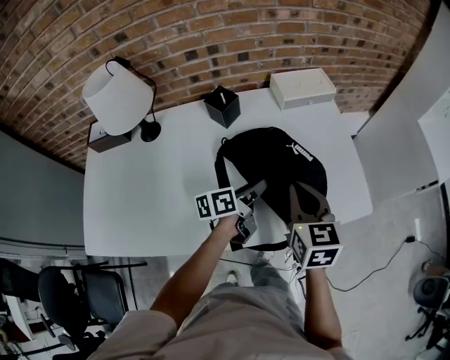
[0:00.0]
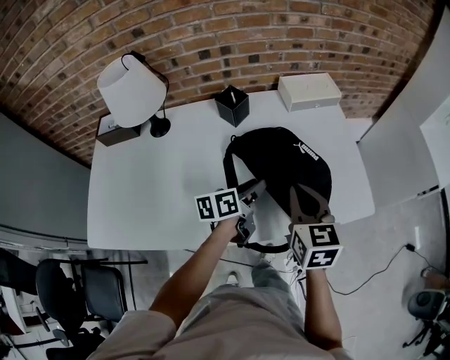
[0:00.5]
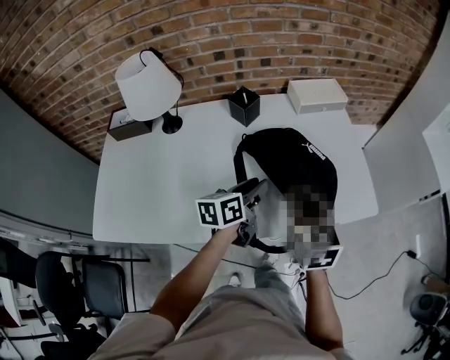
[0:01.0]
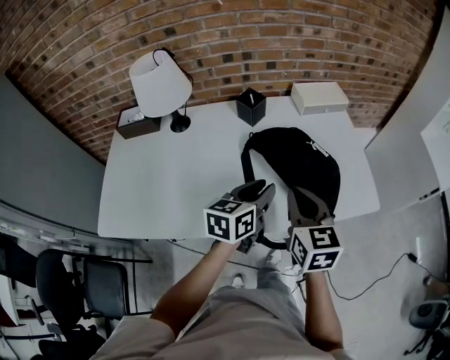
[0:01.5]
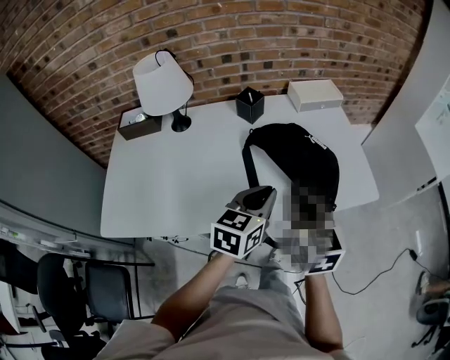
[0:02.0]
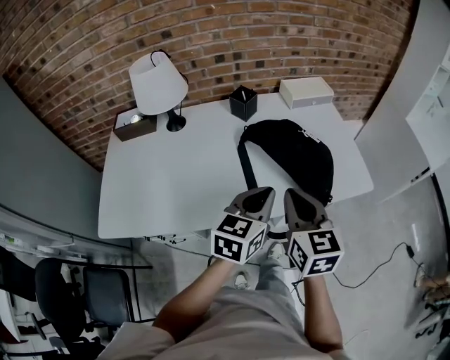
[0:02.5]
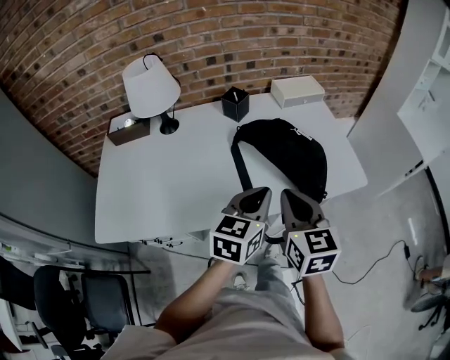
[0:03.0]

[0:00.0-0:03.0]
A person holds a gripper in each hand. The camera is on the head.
0.0 to 1.5 s: The right gripper travels backward and to the left by about 10 cm; the left gripper moves backward and upward, roughly 15 cm, and changes its angle by some 40 degrees.
1.5 to 3.0 s: Both grippers travel together backward, some 10 cm. The left gripper closes up.

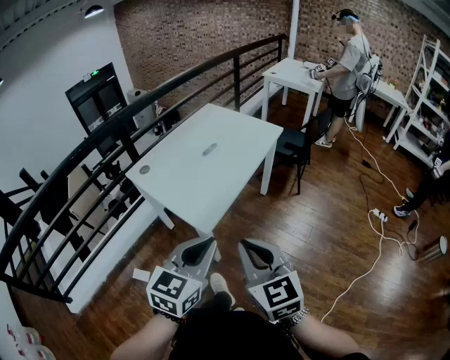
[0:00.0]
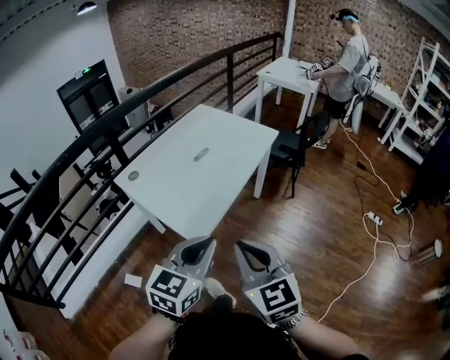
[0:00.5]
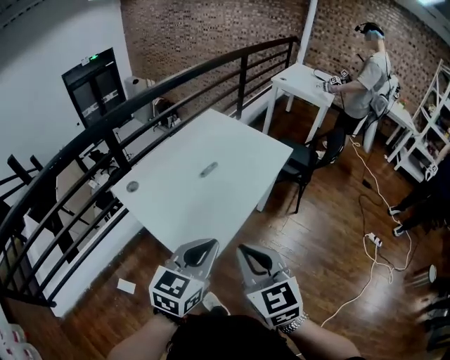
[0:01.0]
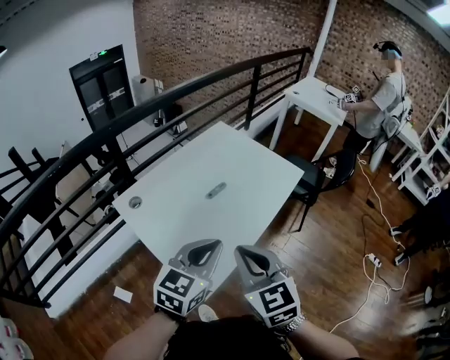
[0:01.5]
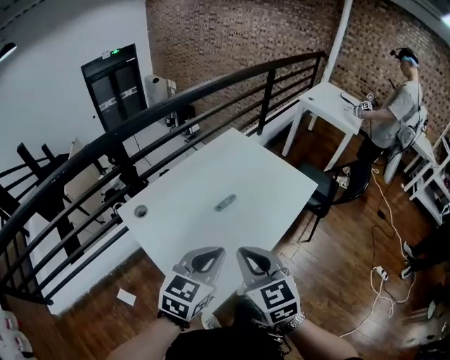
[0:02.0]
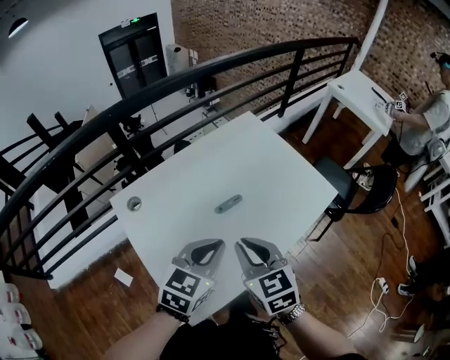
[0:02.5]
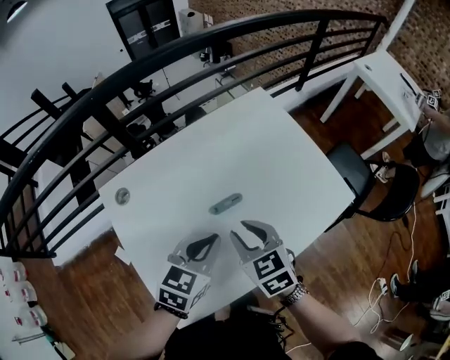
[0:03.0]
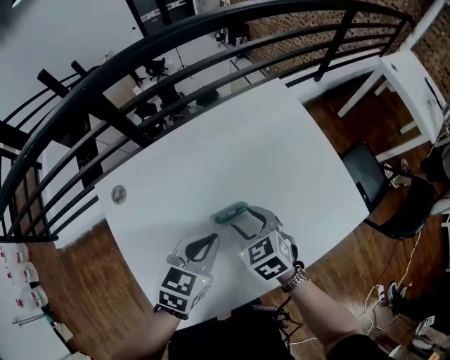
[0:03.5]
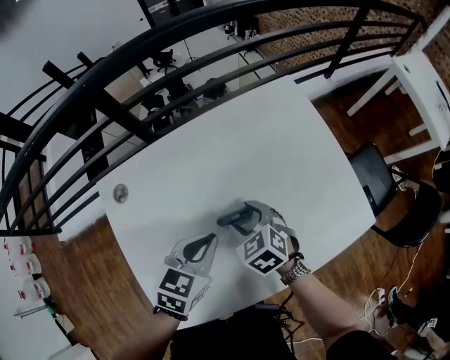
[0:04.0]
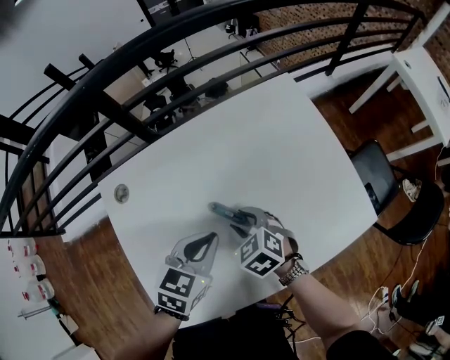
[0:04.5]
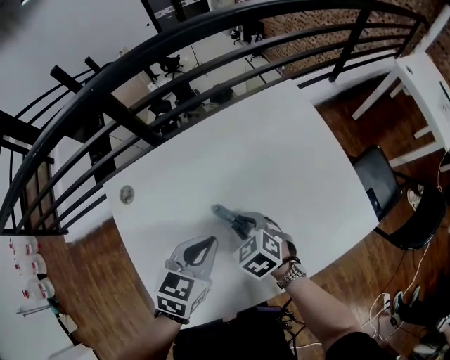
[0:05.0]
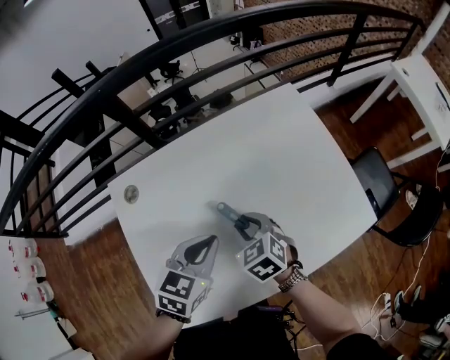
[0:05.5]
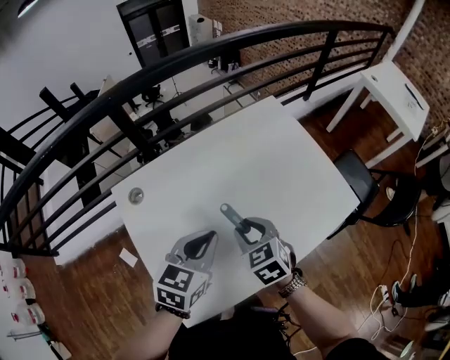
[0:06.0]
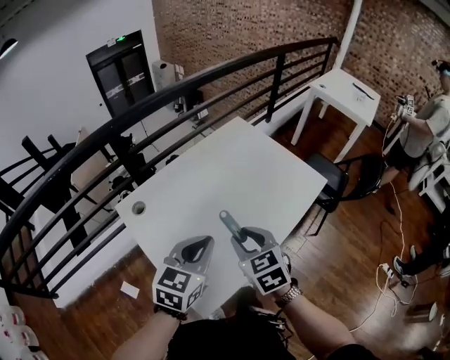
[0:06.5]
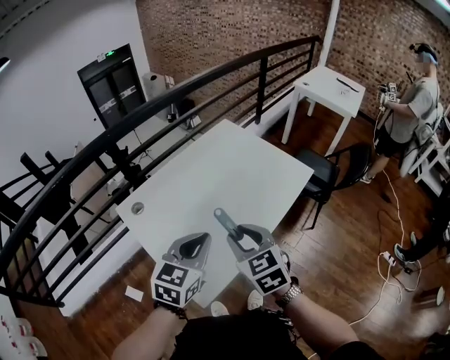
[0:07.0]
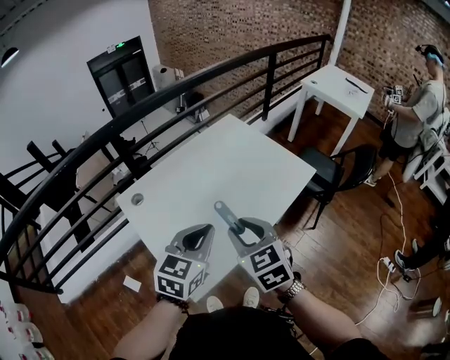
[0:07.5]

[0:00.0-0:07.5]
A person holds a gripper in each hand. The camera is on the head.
0.0 to 2.0 s: The grippers both shift forward by about 30 cm.
2.0 to 4.0 s: The right gripper changes place by approximately 35 cm, rotates some 50 degrees, and opens up. Meanwhile the left gripper changes place by about 25 cm, and turns by some 30 degrees.
4.0 to 5.5 s: The right gripper closes up.
5.5 to 7.5 s: The grippers both shift backward and upward by about 25 cm. The left gripper changes its angle by approximately 30 degrees; the right gripper rotates approximately 30 degrees.

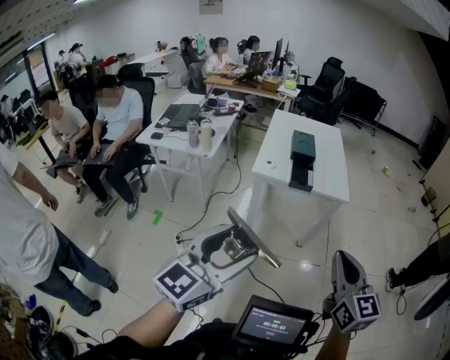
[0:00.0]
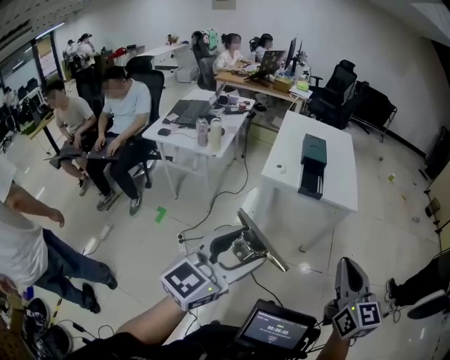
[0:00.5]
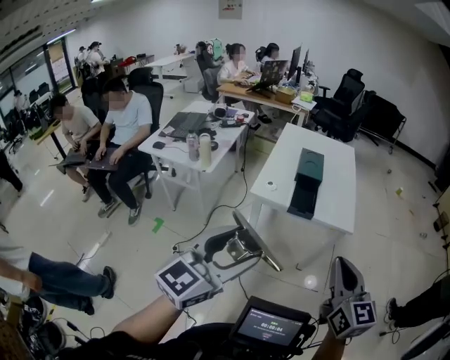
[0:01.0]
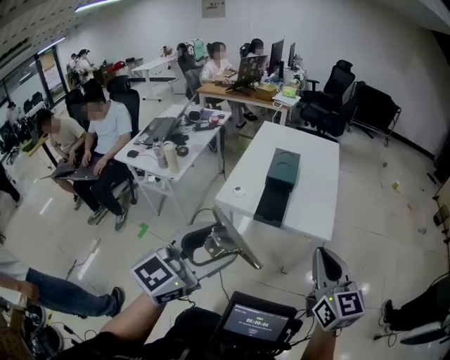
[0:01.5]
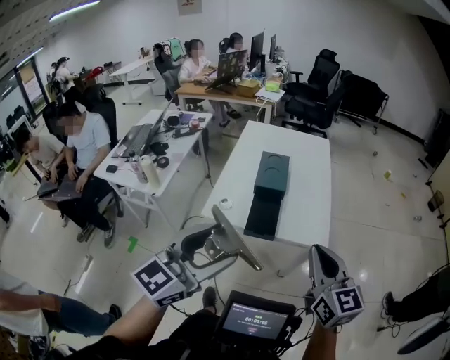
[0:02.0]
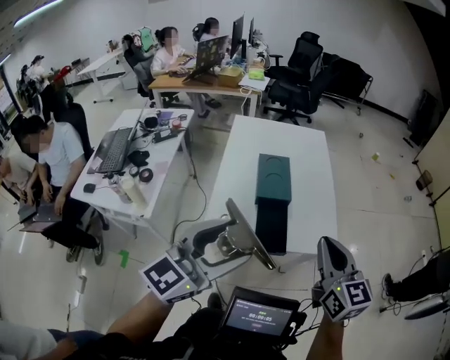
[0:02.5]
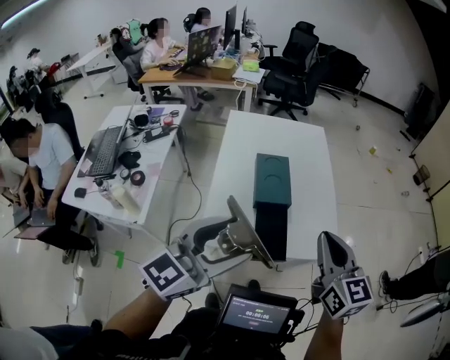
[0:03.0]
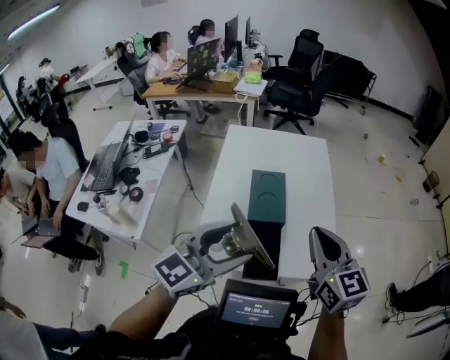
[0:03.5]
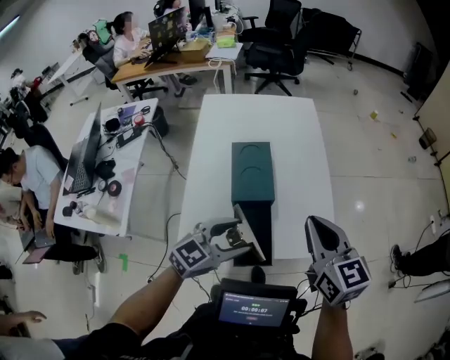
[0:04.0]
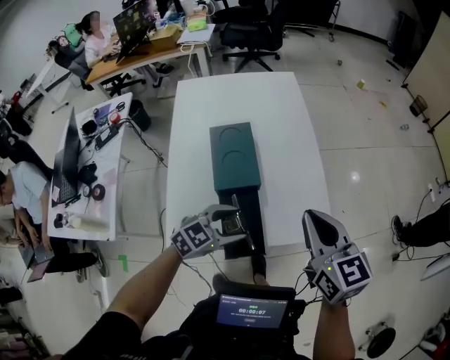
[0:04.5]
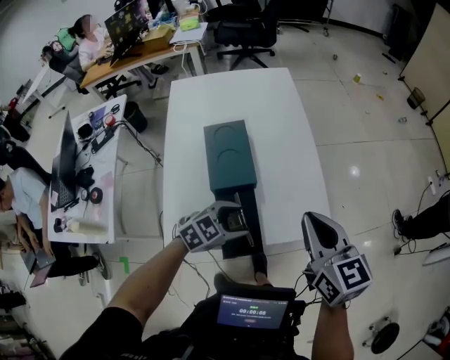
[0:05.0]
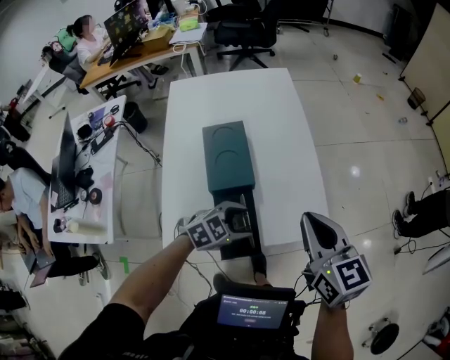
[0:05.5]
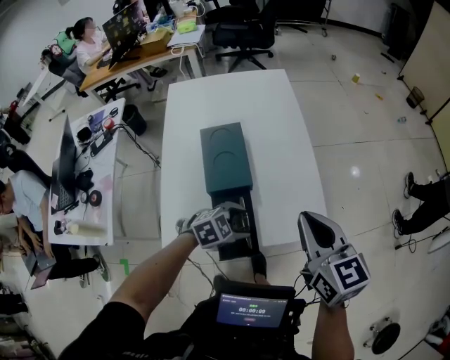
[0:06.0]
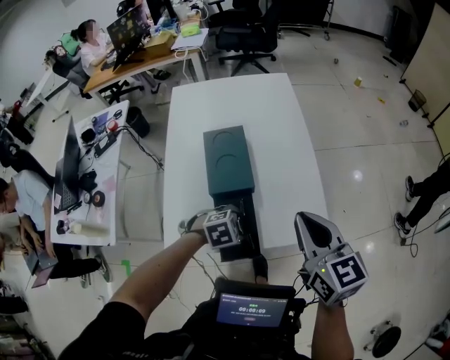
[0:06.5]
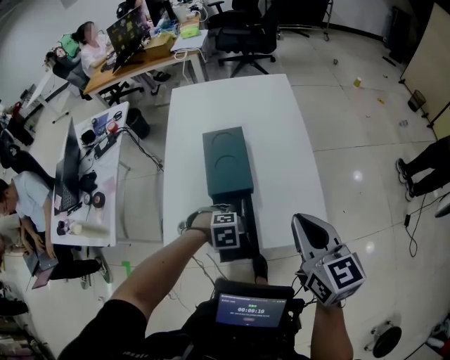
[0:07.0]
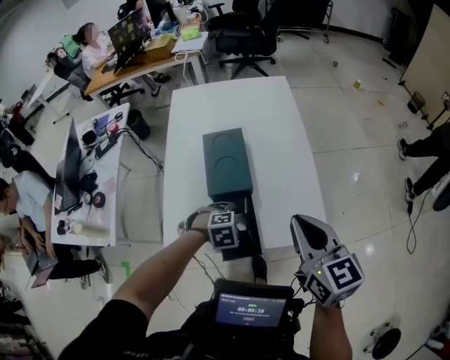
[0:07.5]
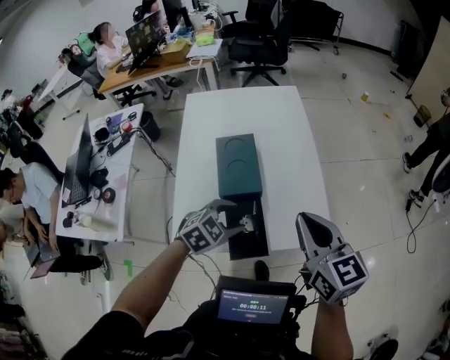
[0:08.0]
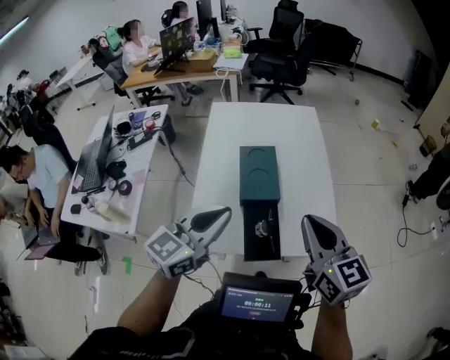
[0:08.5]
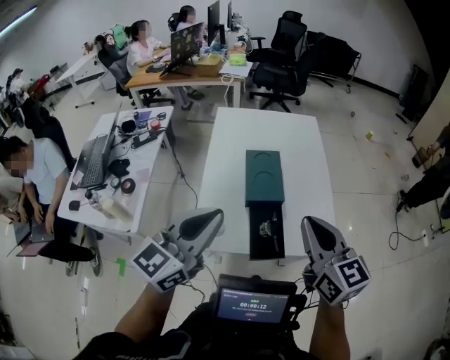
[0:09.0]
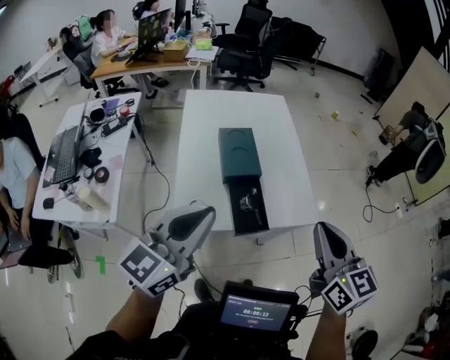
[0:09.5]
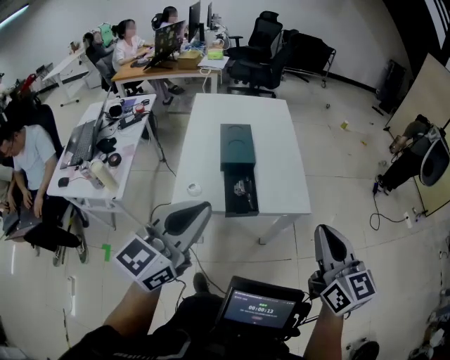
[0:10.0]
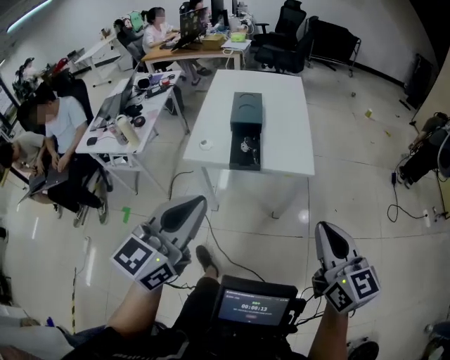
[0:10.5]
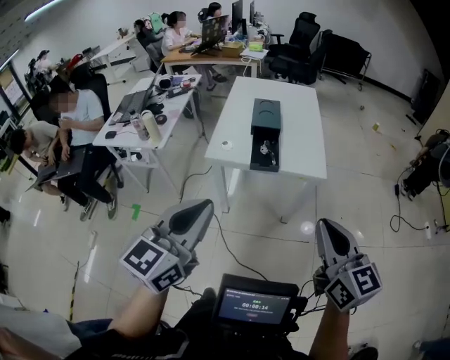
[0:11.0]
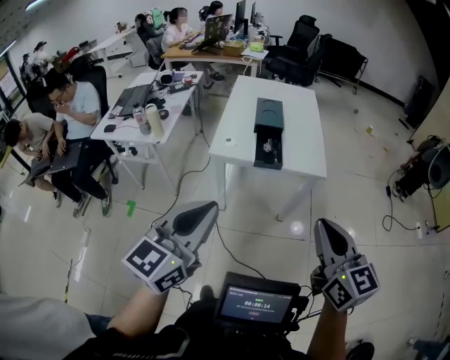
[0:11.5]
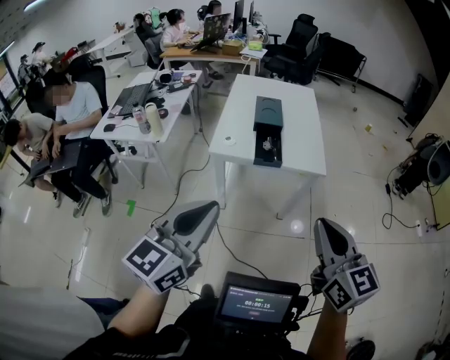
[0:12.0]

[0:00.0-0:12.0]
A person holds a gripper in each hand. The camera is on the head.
0.0 to 2.0 s: The two grippers travel together, forward, some 50 cm.
2.0 to 4.0 s: The right gripper moves forward, roughly 40 cm. Meanwhile the left gripper goes about 50 cm forward and downward, and turns by approximately 30 degrees.
4.0 to 6.0 s: The left gripper is displaced downward, to the right and forward by some 20 cm, and angles its fingers downward, by about 30 degrees. The right gripper travels to the right by about 5 cm.
6.0 to 8.0 s: The left gripper goes roughly 10 cm upward; the right gripper ends up roughly 5 cm from where it was.
8.0 to 10.0 s: The right gripper heads backward, covering about 35 cm. The left gripper travels backward and upward by roughly 50 cm, angles its fingers upward, by approximately 50 degrees, and closes its fingers.
10.0 to 12.0 s: The grippers both shift backward by some 35 cm.

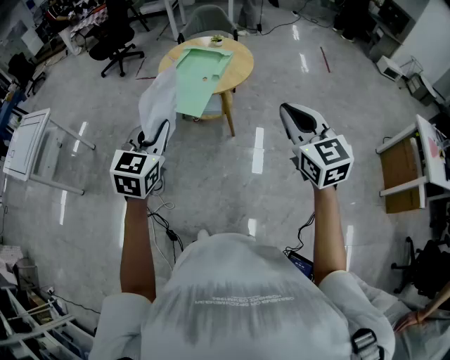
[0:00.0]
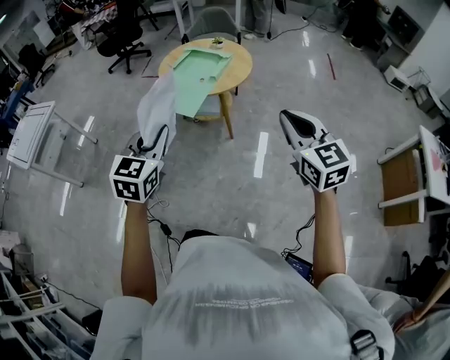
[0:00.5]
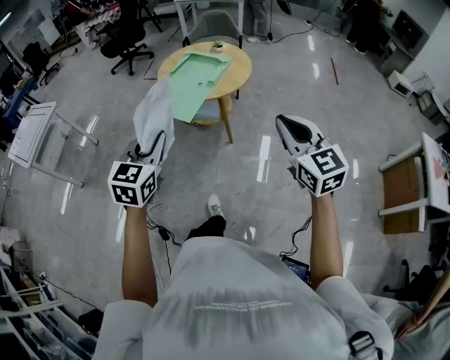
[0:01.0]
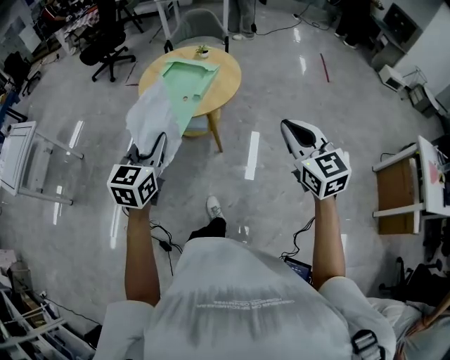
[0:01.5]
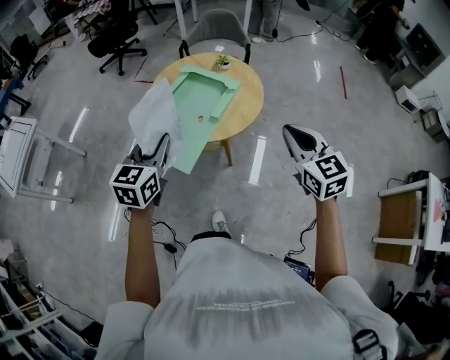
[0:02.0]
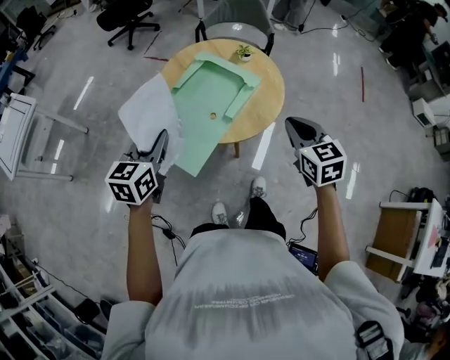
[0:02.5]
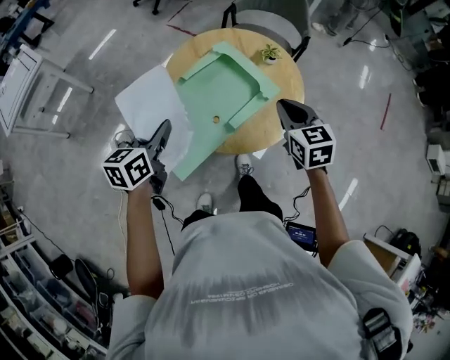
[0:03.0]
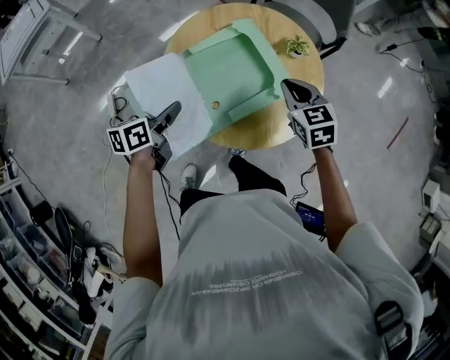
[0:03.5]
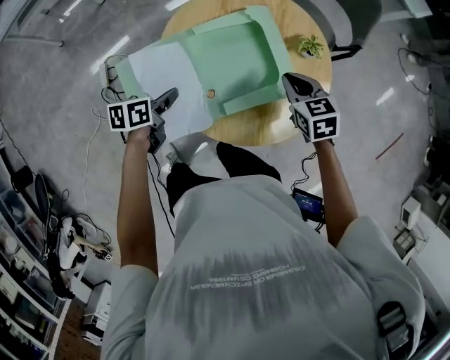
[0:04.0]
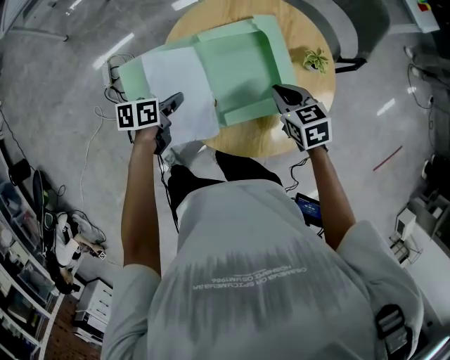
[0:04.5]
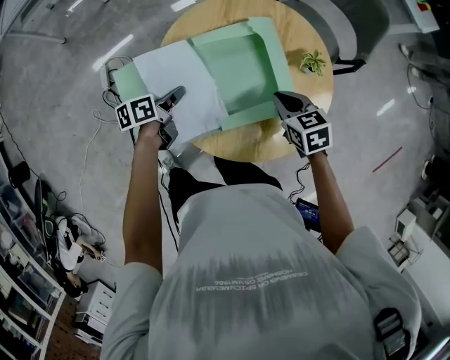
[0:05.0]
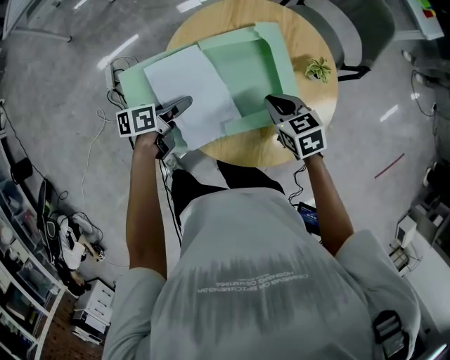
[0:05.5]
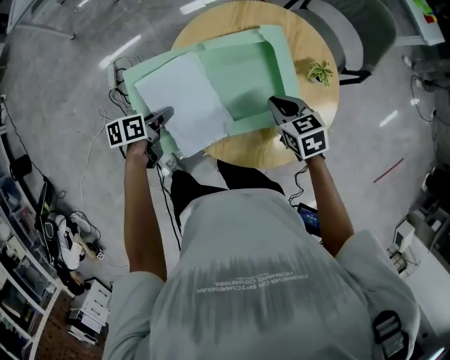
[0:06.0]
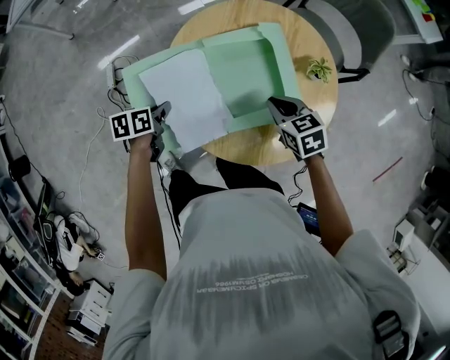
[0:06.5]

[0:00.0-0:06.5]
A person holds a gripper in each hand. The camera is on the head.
0.0 to 2.0 s: The two grippers go roughly 30 cm forward.
2.0 to 4.5 s: The right gripper moves some 50 cm, and tilts its fingers approximately 30 degrees downward. Meanwhile the left gripper shifts roughly 30 cm downward, and twists approximately 60 degrees counterclockwise, seen from behind.
4.5 to 6.5 s: The left gripper moves to the left, about 5 cm, and opens and closes again.
